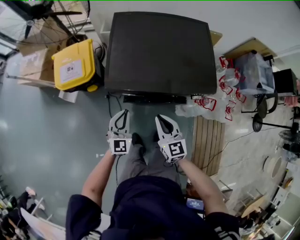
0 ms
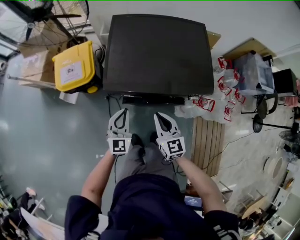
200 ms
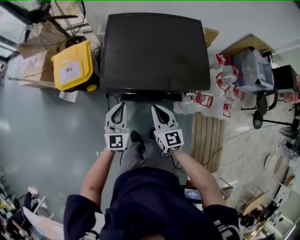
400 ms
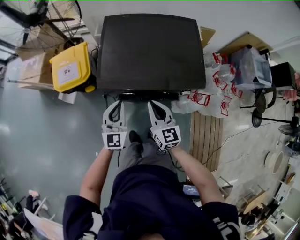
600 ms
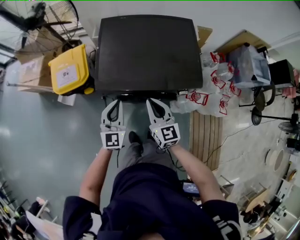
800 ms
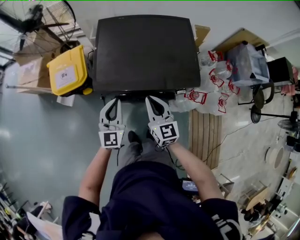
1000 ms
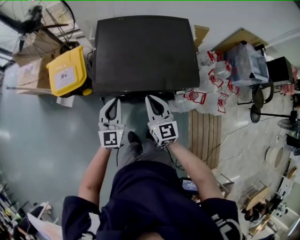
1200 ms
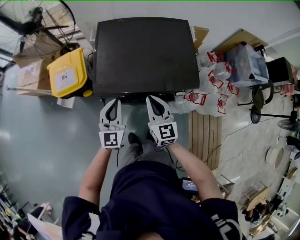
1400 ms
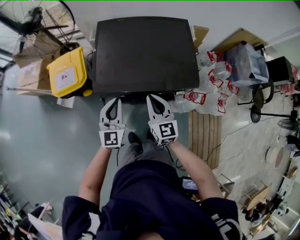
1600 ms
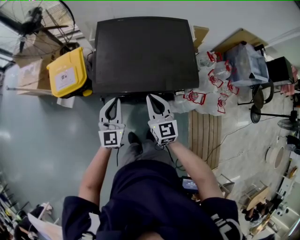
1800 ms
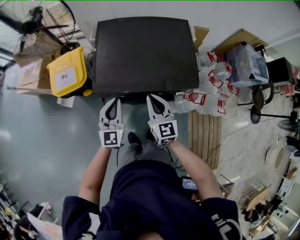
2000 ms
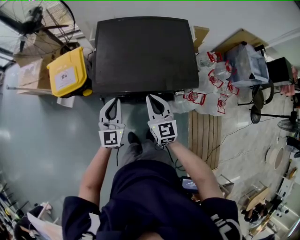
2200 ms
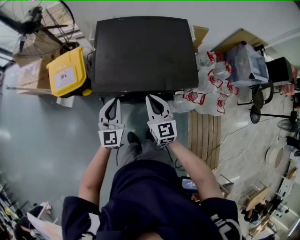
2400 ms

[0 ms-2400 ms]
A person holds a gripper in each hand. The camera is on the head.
0 ms to 1200 ms: The right gripper is displaced upward and forward by approximately 10 cm. Meanwhile the left gripper is displaced upward by some 10 cm.
1200 ms to 2400 ms: Both grippers stay put.

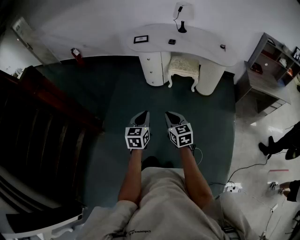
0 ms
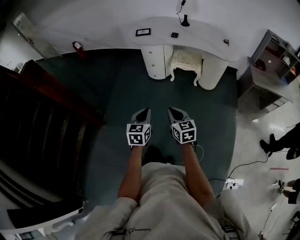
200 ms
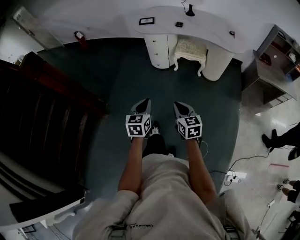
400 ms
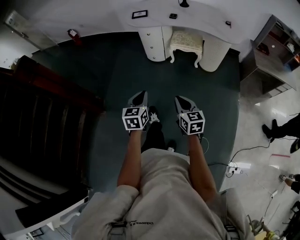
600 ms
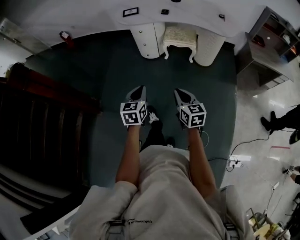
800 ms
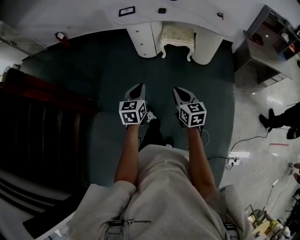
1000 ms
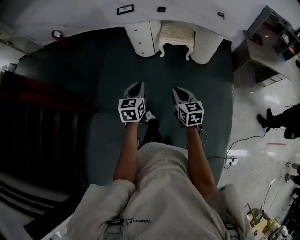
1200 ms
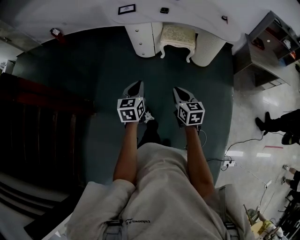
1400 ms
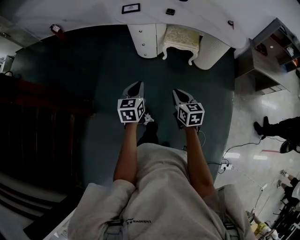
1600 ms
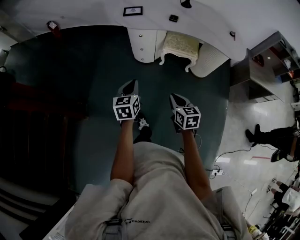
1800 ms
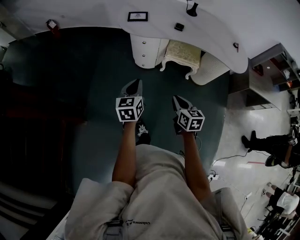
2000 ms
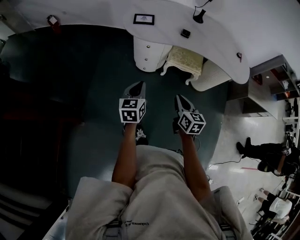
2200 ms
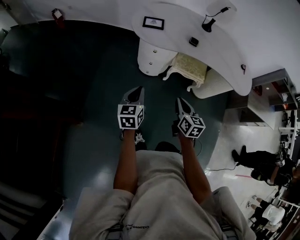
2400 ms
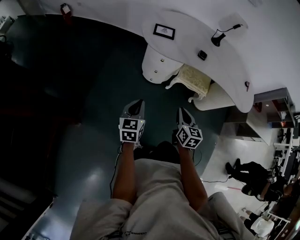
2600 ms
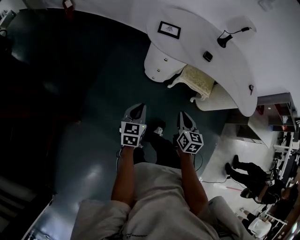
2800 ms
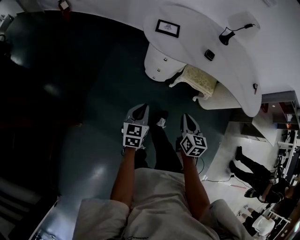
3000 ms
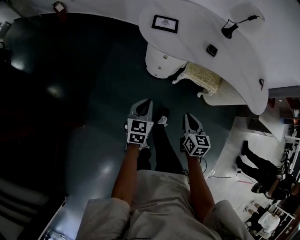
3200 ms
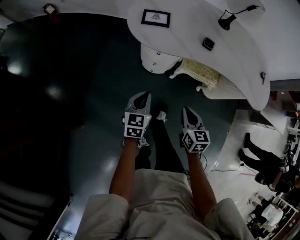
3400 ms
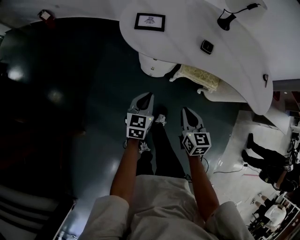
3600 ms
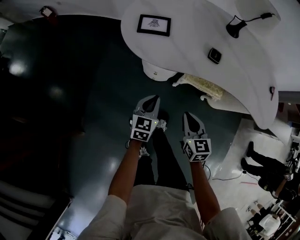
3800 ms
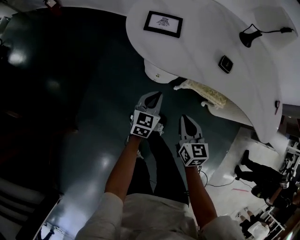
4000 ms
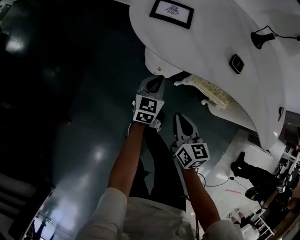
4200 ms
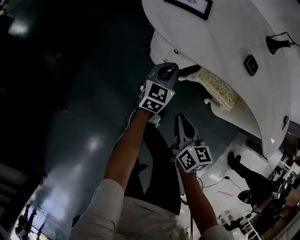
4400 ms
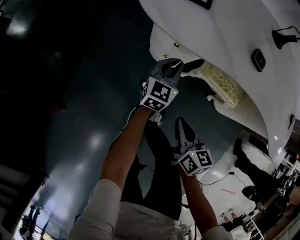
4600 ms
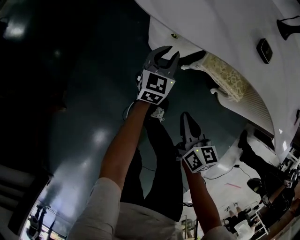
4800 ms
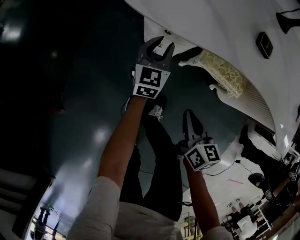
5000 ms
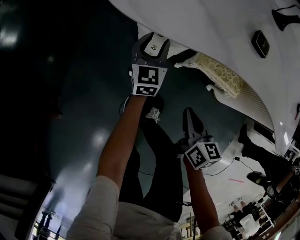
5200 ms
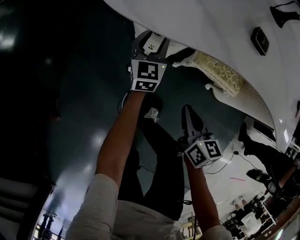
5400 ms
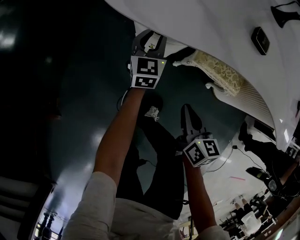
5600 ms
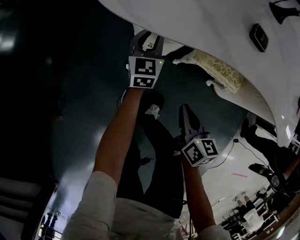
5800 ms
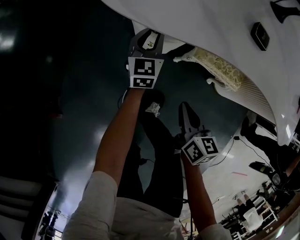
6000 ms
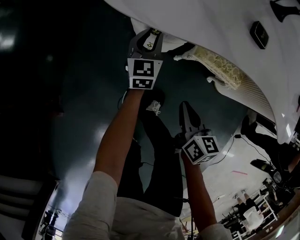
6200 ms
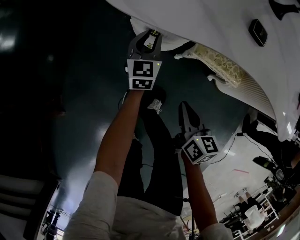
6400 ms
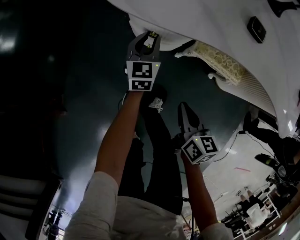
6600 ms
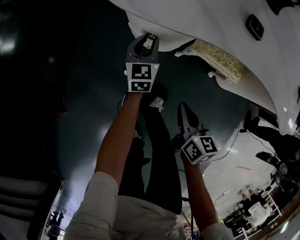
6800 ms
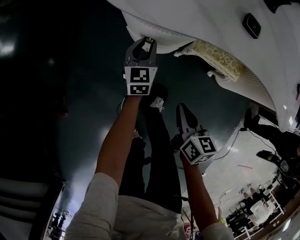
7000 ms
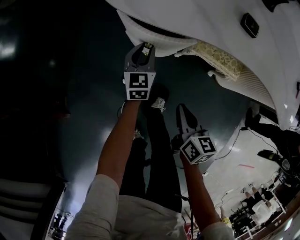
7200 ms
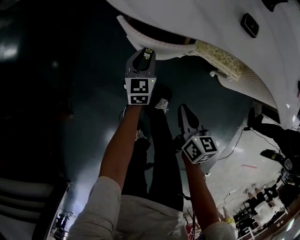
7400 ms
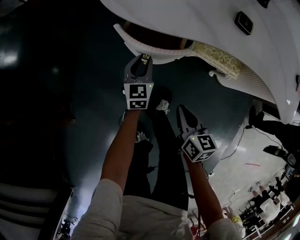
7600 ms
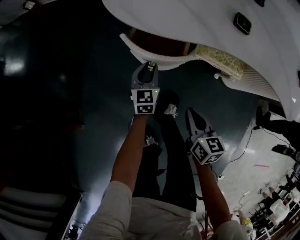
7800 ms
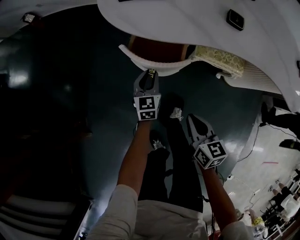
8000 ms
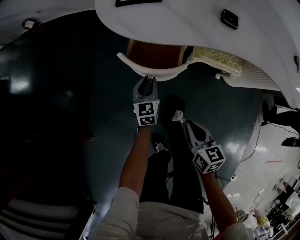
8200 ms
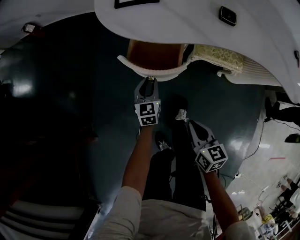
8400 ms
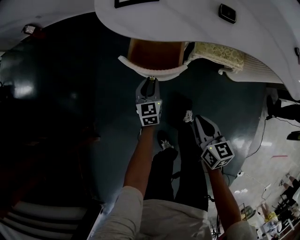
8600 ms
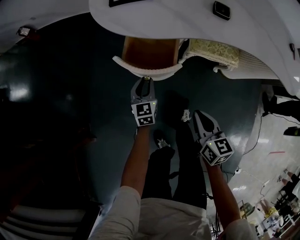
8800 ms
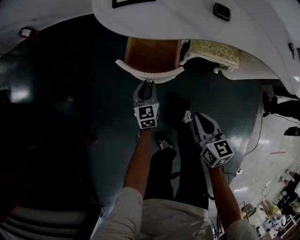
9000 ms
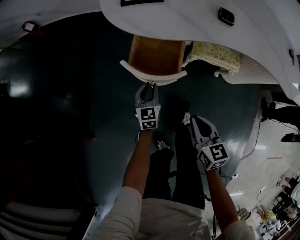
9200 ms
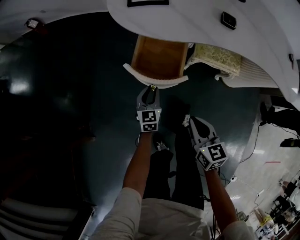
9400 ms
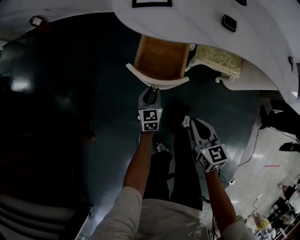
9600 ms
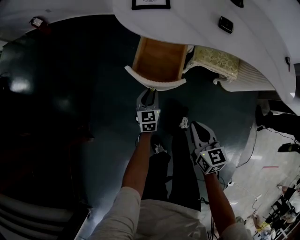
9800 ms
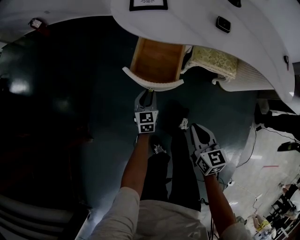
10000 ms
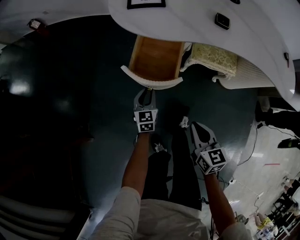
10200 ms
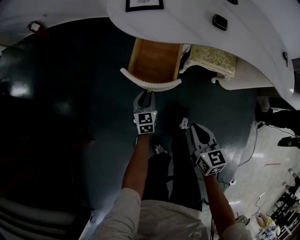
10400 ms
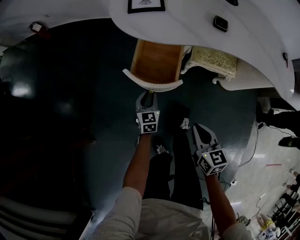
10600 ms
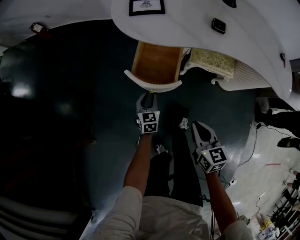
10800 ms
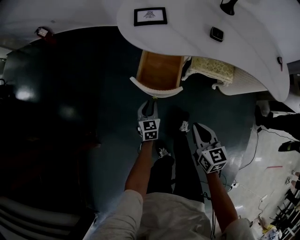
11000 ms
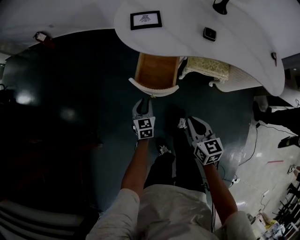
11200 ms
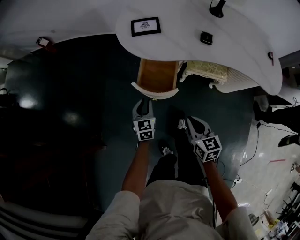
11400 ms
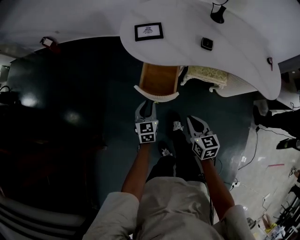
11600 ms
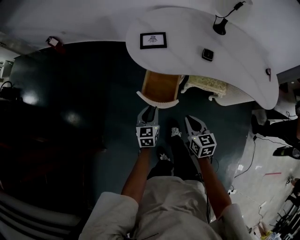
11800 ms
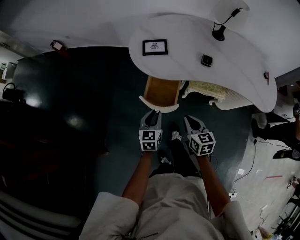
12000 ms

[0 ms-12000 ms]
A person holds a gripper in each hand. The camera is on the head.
0 ms to 1600 ms: Both grippers travel together forward, roughly 20 cm.
1600 ms to 3000 ms: The left gripper moves forward and to the left, approximately 25 cm; the right gripper shifts about 25 cm forward.
3000 ms to 4400 ms: The right gripper goes roughly 25 cm downward and forward, while the left gripper goes some 40 cm forward and downward.
4400 ms to 6000 ms: The left gripper heads forward and downward, covering roughly 10 cm, and opens. The right gripper moves downward and to the right, some 10 cm.
6000 ms to 7600 ms: The right gripper is displaced backward by approximately 5 cm; the left gripper is displaced backward and to the left by about 10 cm.
7600 ms to 9000 ms: The right gripper moves upward and backward, some 5 cm, while the left gripper goes some 5 cm backward.
9000 ms to 10400 ms: The right gripper heads backward, covering some 5 cm. Meanwhile the left gripper moves some 5 cm.
10400 ms to 12000 ms: The right gripper heads upward and forward, covering some 15 cm. Meanwhile the left gripper travels upward by about 25 cm.

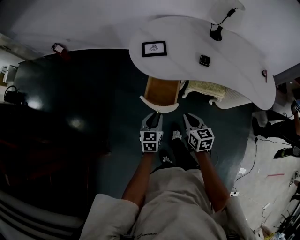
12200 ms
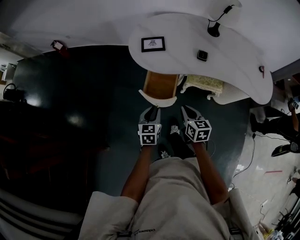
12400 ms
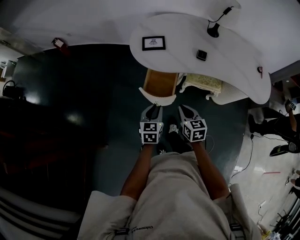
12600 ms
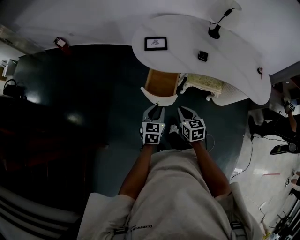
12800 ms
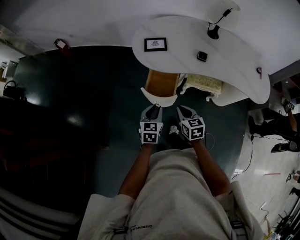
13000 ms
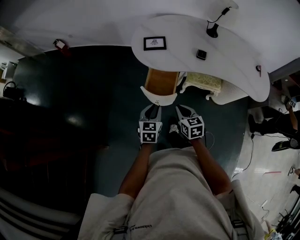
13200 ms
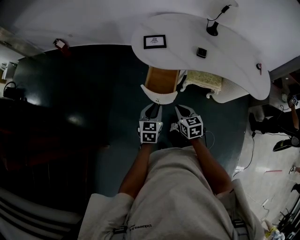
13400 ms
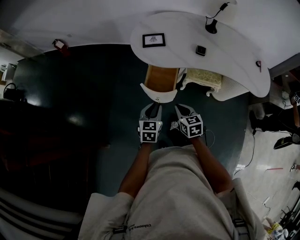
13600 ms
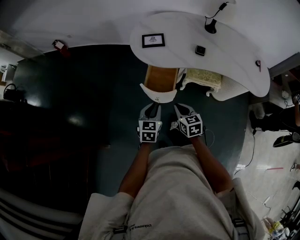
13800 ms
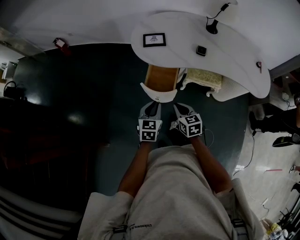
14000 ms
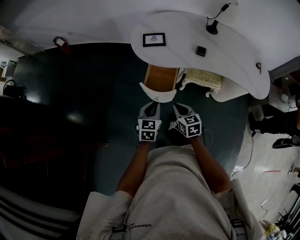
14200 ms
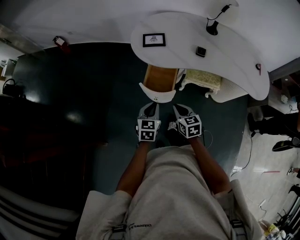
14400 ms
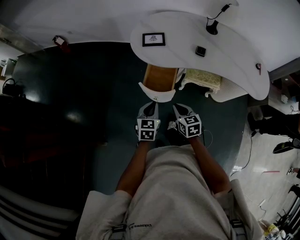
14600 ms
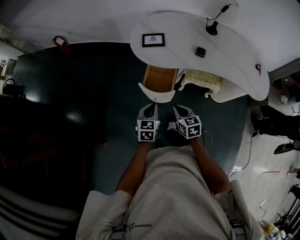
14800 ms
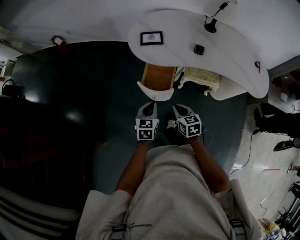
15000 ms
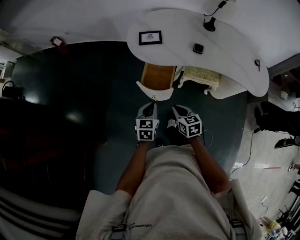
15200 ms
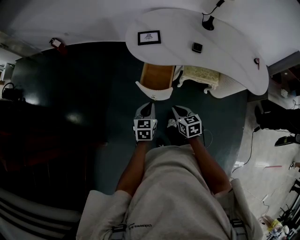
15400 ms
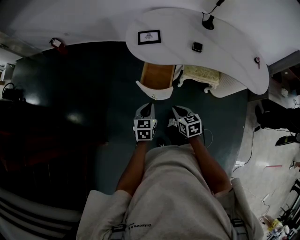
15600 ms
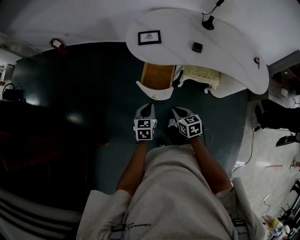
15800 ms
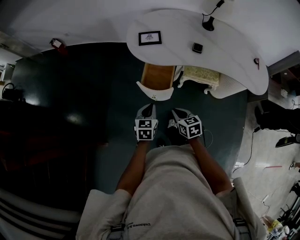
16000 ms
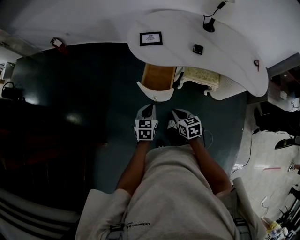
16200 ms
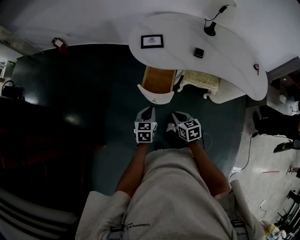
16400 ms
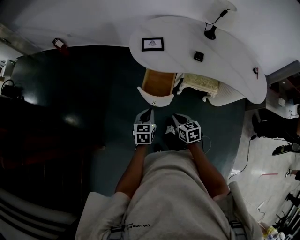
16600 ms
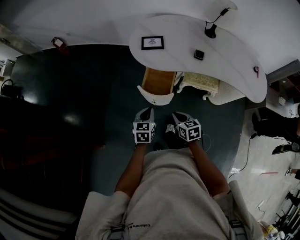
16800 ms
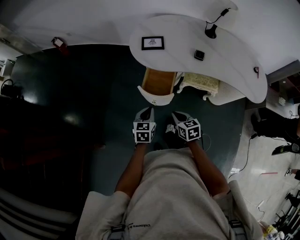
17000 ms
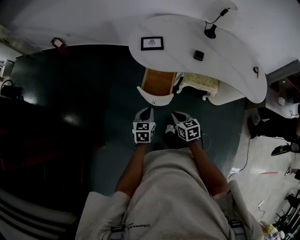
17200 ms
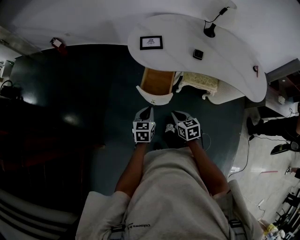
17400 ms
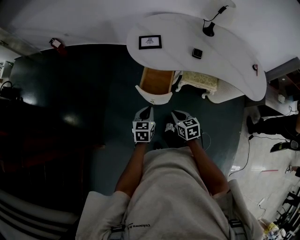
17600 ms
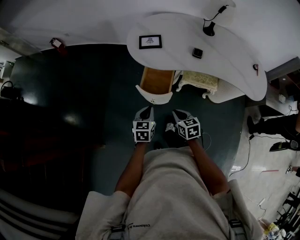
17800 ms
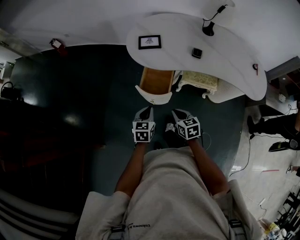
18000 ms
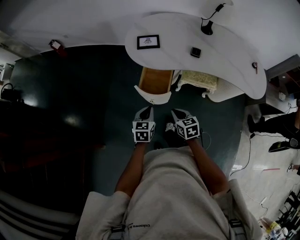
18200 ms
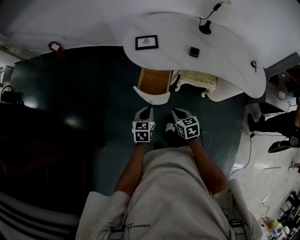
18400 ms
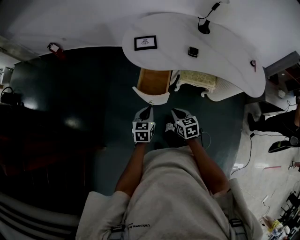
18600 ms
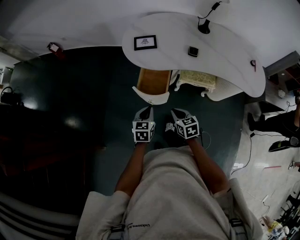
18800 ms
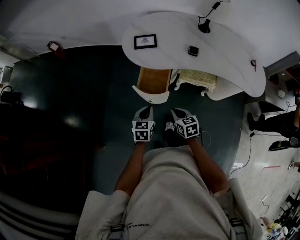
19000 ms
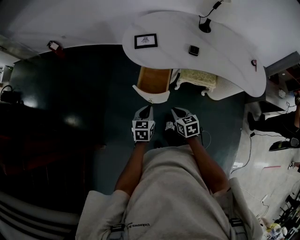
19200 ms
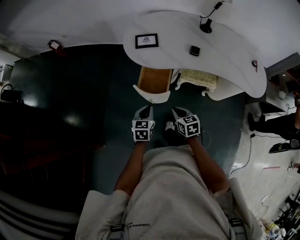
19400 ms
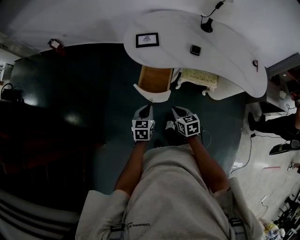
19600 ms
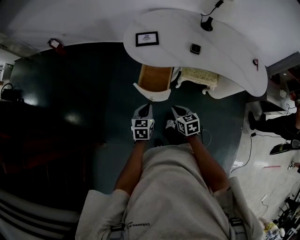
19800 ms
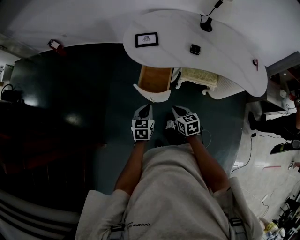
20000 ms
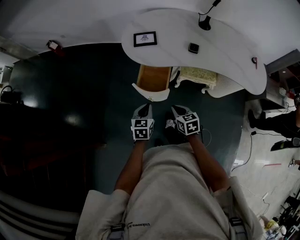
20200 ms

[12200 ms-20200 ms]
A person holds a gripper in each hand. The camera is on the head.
12200 ms to 13800 ms: The right gripper moves some 5 cm; the left gripper moves backward, roughly 5 cm.
13800 ms to 18600 ms: The grippers make only small movements.
18600 ms to 20200 ms: Both grippers stay put.

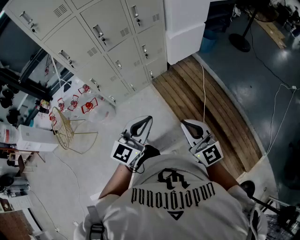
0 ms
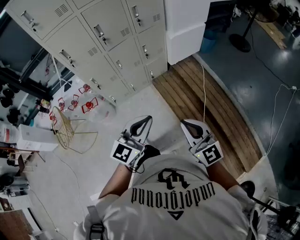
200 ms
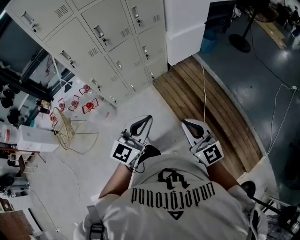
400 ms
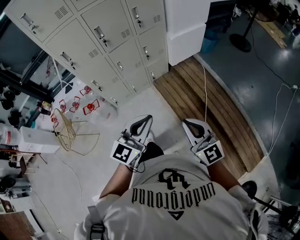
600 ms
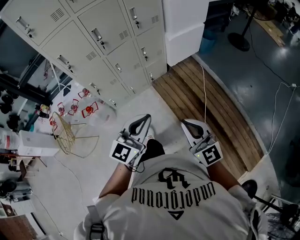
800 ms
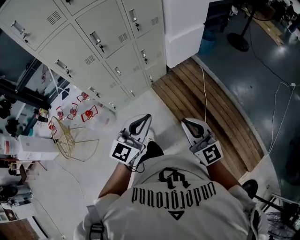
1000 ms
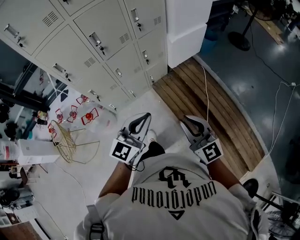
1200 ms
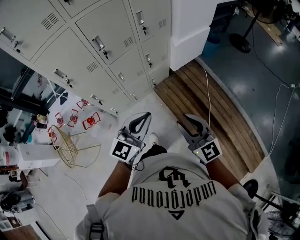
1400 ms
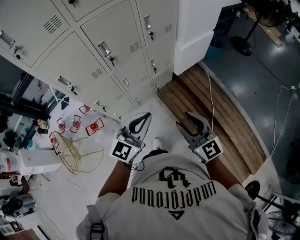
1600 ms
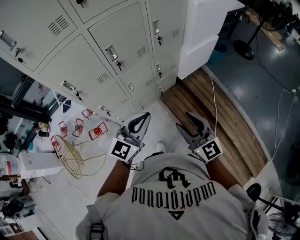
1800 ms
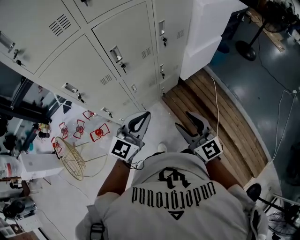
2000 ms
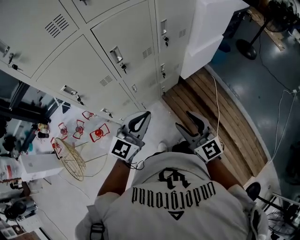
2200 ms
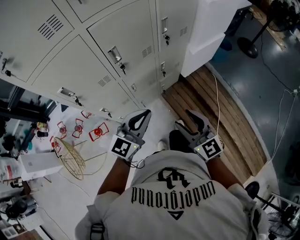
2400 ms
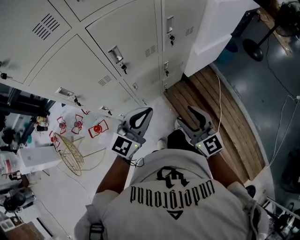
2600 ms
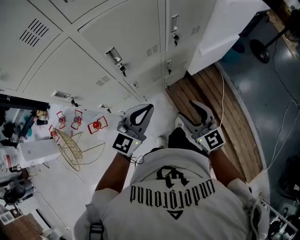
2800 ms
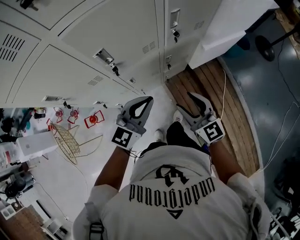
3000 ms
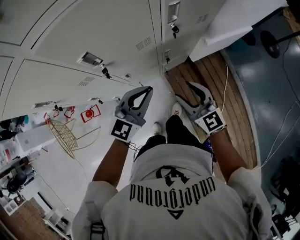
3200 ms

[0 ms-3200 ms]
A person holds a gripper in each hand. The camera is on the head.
0 ms to 1600 ms: The grippers both shift forward and to the left by about 25 cm. The right gripper opens up.
1600 ms to 3200 ms: The two grippers go approximately 30 cm forward.
